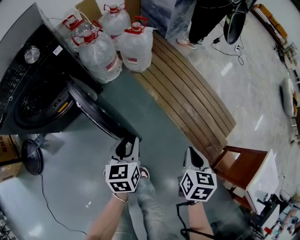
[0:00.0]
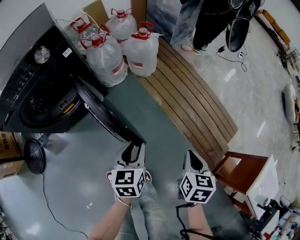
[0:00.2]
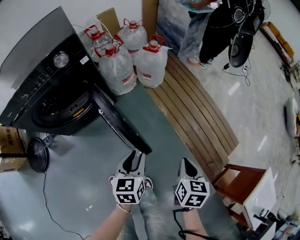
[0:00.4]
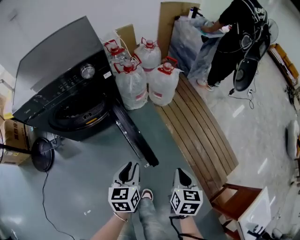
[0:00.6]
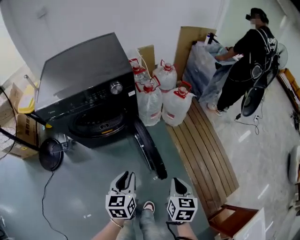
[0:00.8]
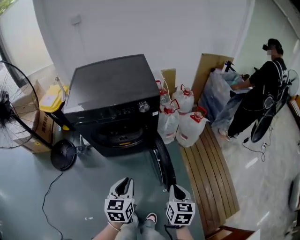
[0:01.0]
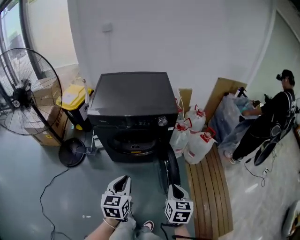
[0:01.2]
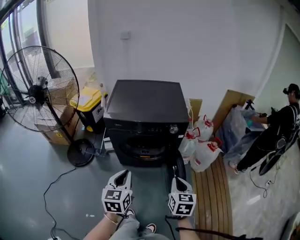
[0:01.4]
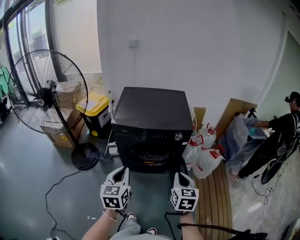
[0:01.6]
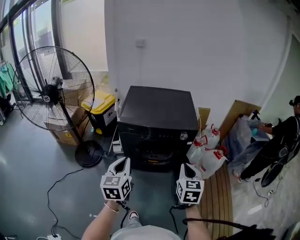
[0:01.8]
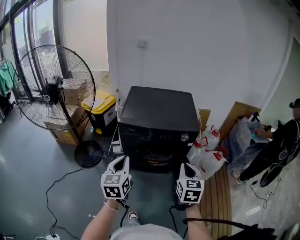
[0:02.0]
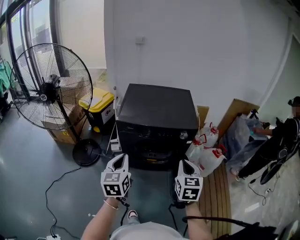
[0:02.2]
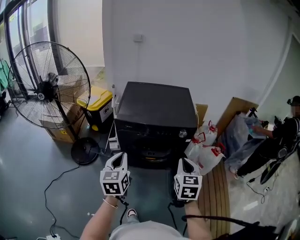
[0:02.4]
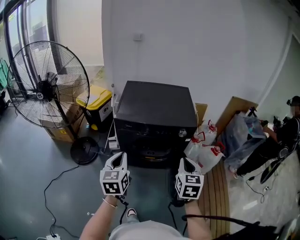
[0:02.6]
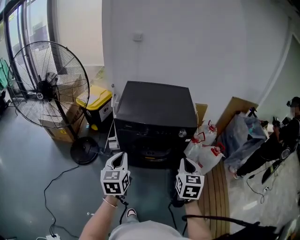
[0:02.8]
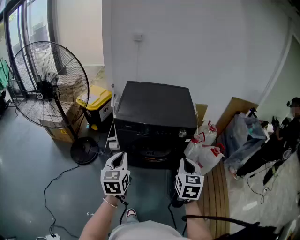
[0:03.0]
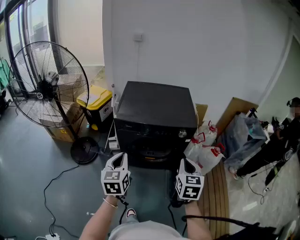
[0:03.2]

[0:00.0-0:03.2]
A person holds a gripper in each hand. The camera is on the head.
0:00.0 to 0:01.6: The right gripper ends up some 50 cm from where it was, and turns by approximately 60 degrees. Meanwhile the left gripper heads upward, covering roughly 40 cm, swivels some 50 degrees, and closes its fingers.
0:01.6 to 0:03.2: The left gripper changes place by approximately 5 cm. Meanwhile the right gripper moves approximately 5 cm.

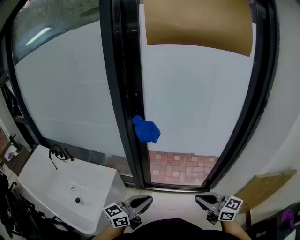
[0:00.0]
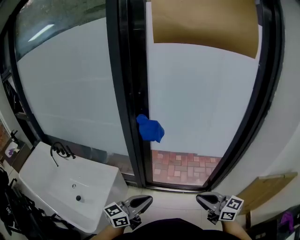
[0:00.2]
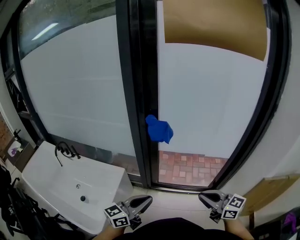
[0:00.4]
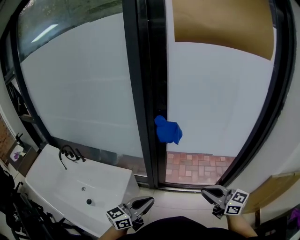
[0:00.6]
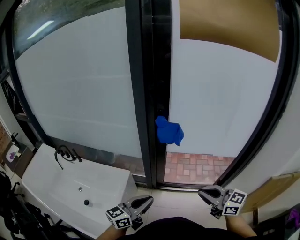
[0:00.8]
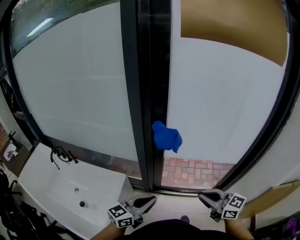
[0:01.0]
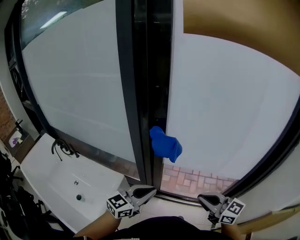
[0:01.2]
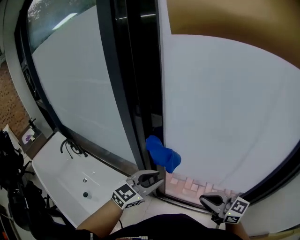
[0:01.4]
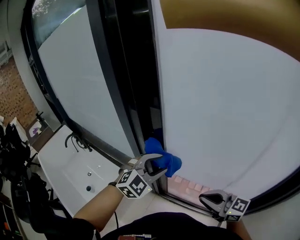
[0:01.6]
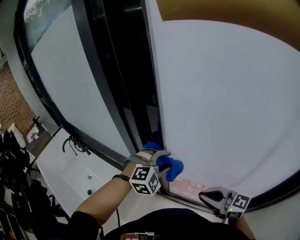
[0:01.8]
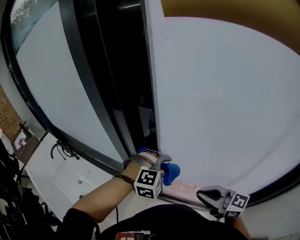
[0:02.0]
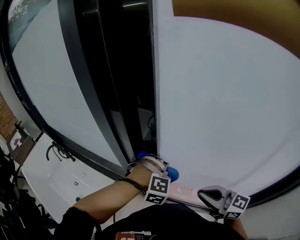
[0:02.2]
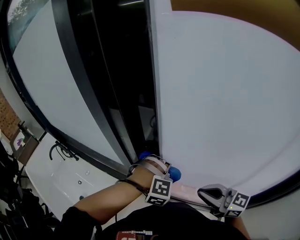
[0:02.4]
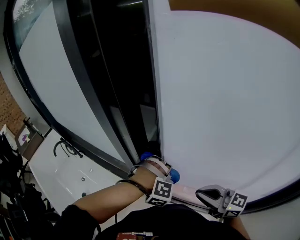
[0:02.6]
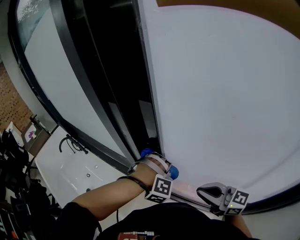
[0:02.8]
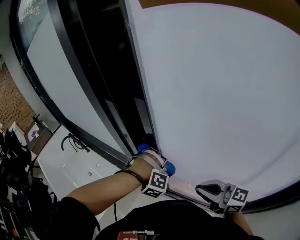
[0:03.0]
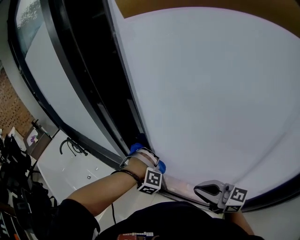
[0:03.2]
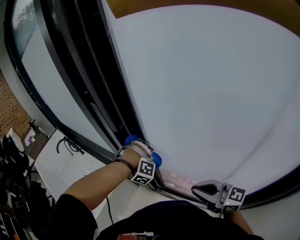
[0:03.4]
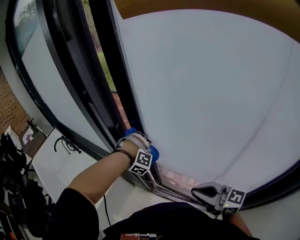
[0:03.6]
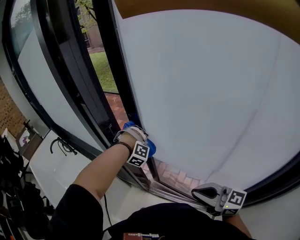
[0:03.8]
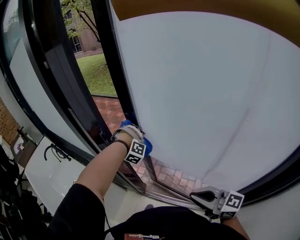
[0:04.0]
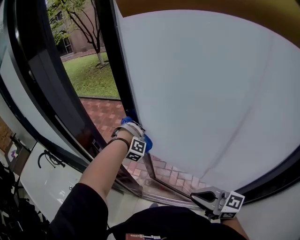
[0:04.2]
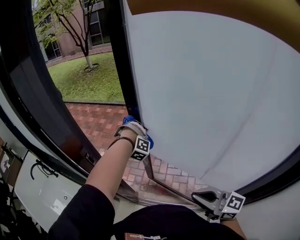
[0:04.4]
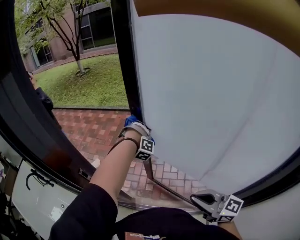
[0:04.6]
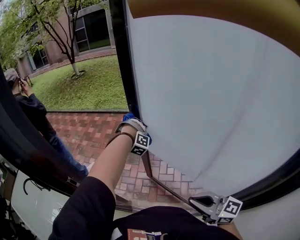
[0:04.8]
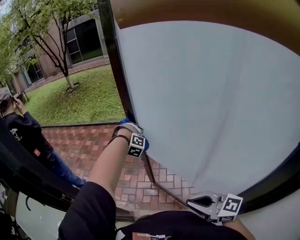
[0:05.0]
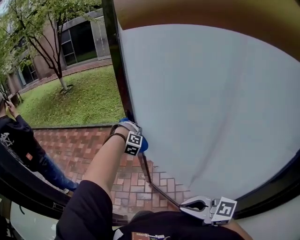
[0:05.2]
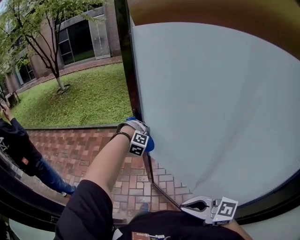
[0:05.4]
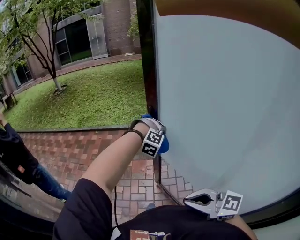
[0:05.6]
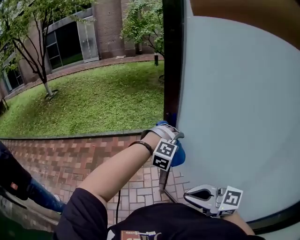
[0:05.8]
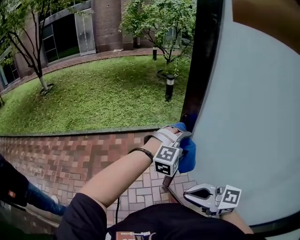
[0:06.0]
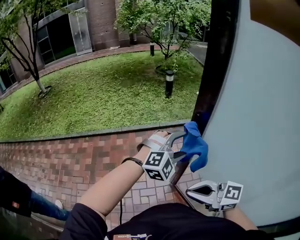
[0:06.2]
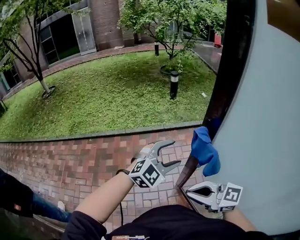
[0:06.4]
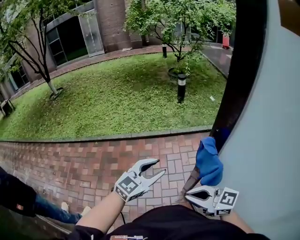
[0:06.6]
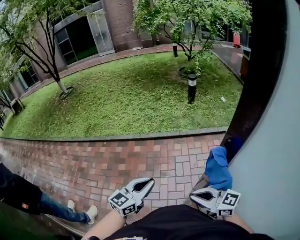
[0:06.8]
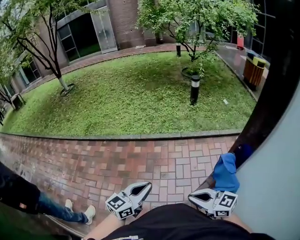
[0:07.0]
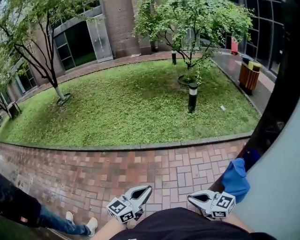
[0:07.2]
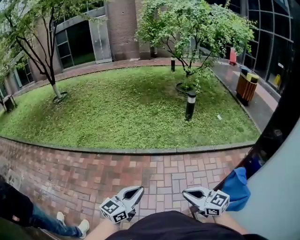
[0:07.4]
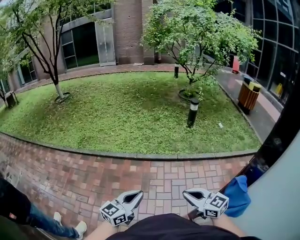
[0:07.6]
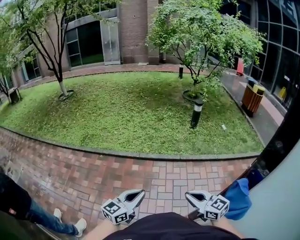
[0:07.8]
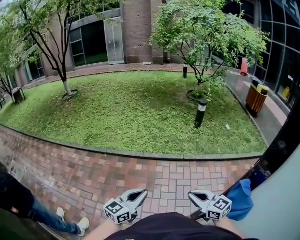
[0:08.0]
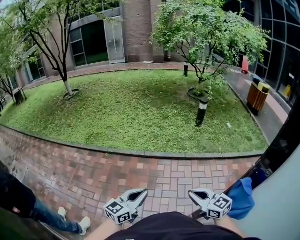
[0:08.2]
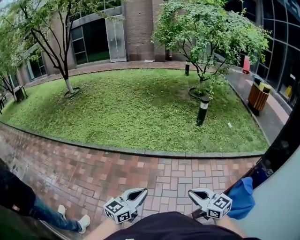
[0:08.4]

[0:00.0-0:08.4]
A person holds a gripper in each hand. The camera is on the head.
0:00.0 to 0:01.4: Both grippers move forward, roughly 30 cm. The left gripper swivels roughly 40 degrees.
0:01.4 to 0:02.8: The left gripper ends up some 20 cm from where it was, and angles its fingers downward, by about 40 degrees, while the right gripper moves roughly 15 cm.
0:02.8 to 0:04.2: The right gripper heads backward and to the right, covering some 15 cm, while the left gripper heads to the right and forward, covering roughly 20 cm.
0:04.2 to 0:05.6: The left gripper changes place by roughly 40 cm, and turns by some 30 degrees; the right gripper ends up about 25 cm from where it was.
0:05.6 to 0:07.0: The left gripper moves forward and to the left, approximately 20 cm, rolls counterclockwise, seen from behind, by roughly 100 degrees, and opens and closes again. Meanwhile the right gripper is displaced forward by approximately 40 cm.
0:07.0 to 0:08.4: The right gripper heads forward and to the left, covering about 15 cm. The left gripper is displaced to the left and forward by about 15 cm.

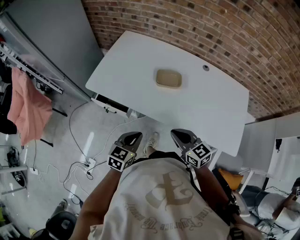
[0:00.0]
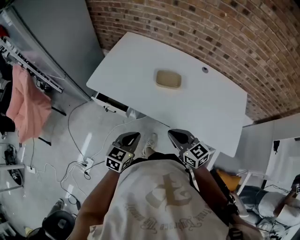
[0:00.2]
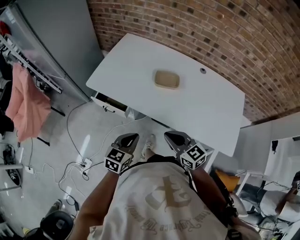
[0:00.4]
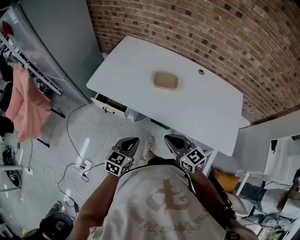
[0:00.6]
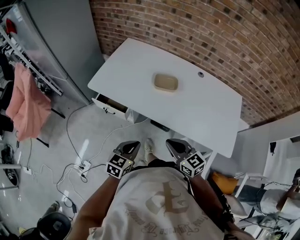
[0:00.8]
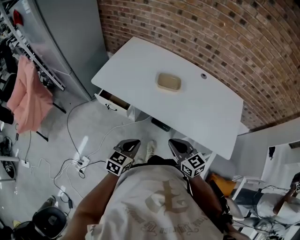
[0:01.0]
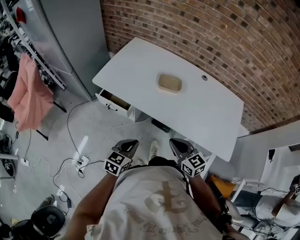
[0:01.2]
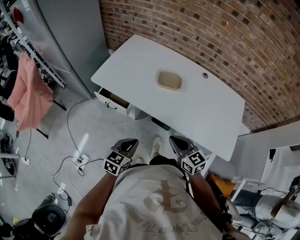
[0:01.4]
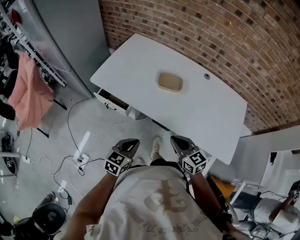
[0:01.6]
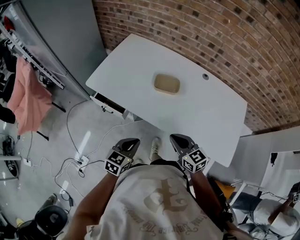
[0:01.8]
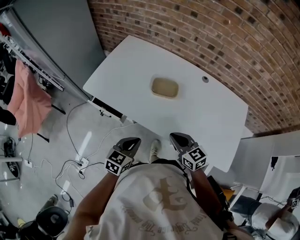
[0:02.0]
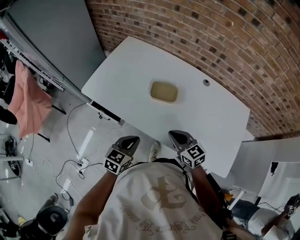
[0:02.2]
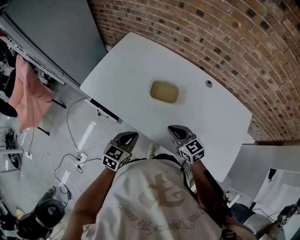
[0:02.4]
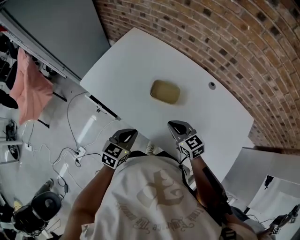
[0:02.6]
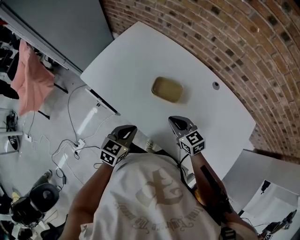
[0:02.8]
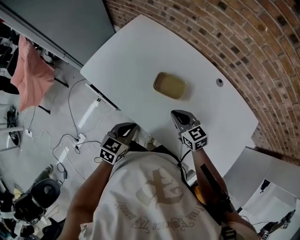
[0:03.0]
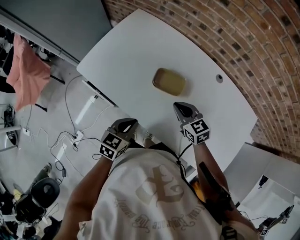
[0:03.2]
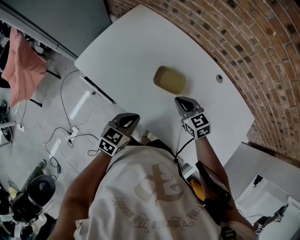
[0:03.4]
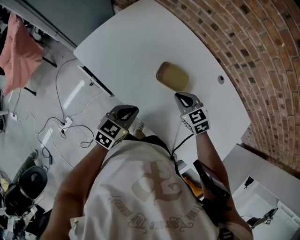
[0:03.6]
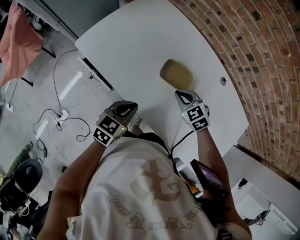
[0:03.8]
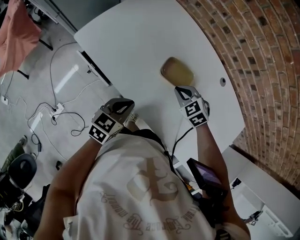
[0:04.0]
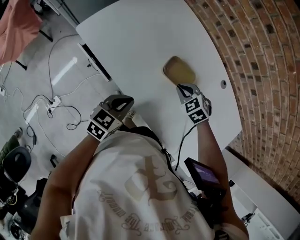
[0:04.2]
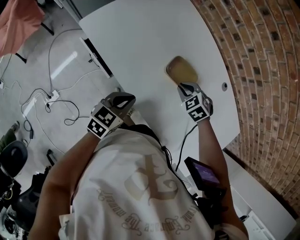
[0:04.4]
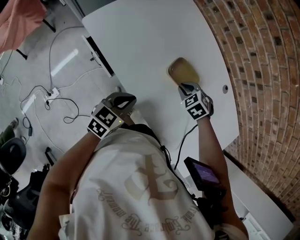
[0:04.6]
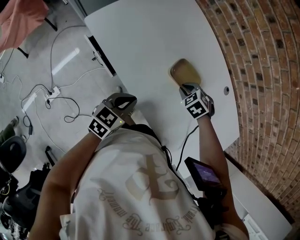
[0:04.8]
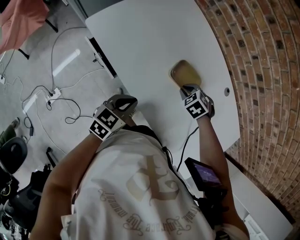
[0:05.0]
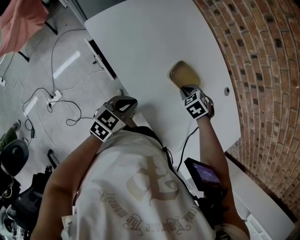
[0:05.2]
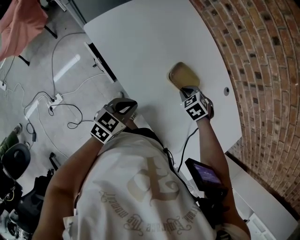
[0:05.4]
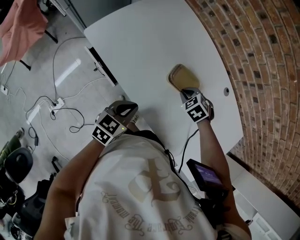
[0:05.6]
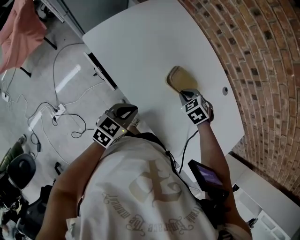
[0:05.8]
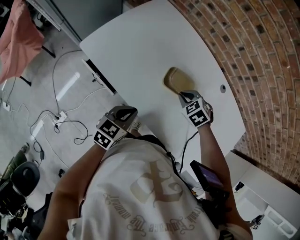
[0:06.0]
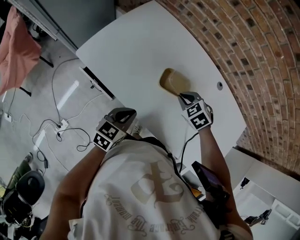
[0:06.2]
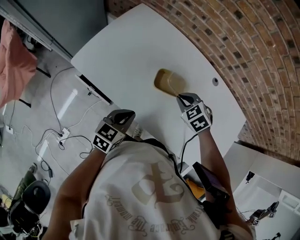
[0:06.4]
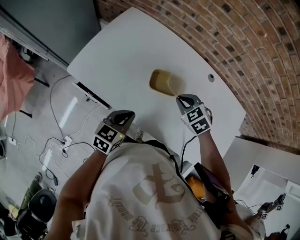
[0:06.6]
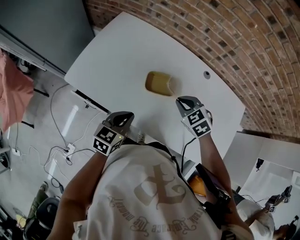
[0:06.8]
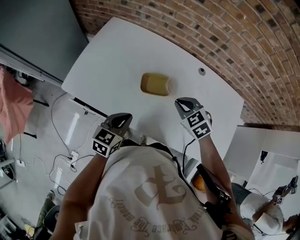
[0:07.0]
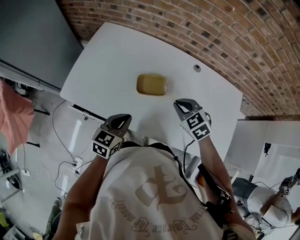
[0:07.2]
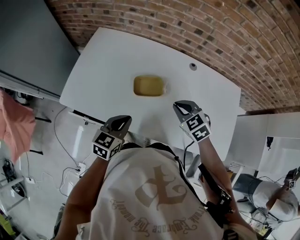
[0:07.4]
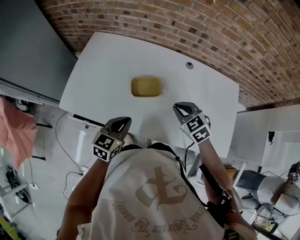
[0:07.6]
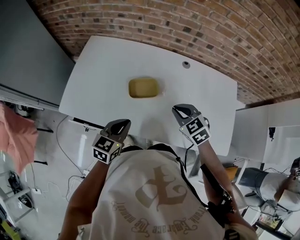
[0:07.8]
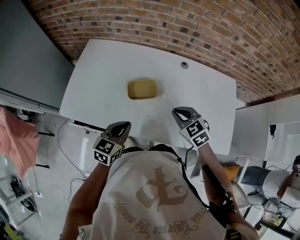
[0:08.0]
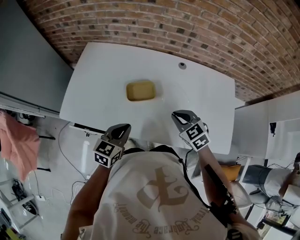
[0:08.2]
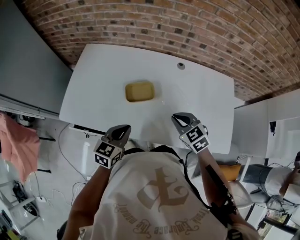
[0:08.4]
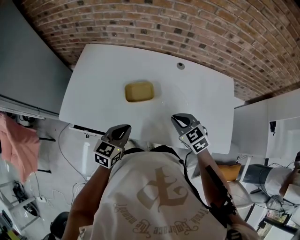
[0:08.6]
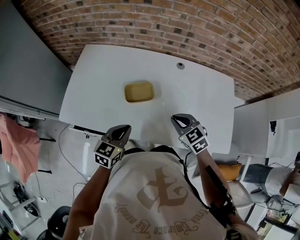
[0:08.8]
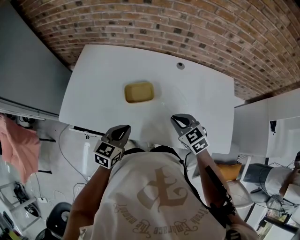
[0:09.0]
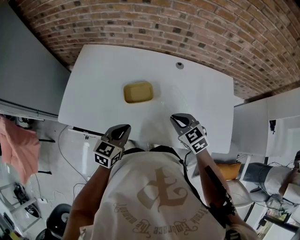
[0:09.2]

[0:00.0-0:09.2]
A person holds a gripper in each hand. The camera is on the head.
0:00.0 to 0:01.6: The left gripper shifts roughly 5 cm backward.
0:01.6 to 0:03.0: The left gripper moves forward and to the right, some 20 cm. The right gripper shifts roughly 25 cm forward.
0:03.0 to 0:04.6: The left gripper changes place by roughly 5 cm; the right gripper goes about 10 cm downward, and angles its fingers downward, by approximately 40 degrees.
0:04.6 to 0:06.2: The right gripper heads upward, covering roughly 5 cm.
0:06.2 to 0:07.6: The right gripper is displaced to the right, upward and backward by roughly 15 cm, and turns by about 30 degrees. Meanwhile the left gripper shifts by about 5 cm.
0:07.6 to 0:09.2: The right gripper shifts by roughly 5 cm.

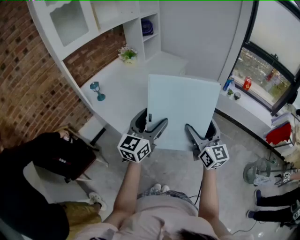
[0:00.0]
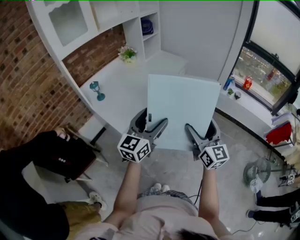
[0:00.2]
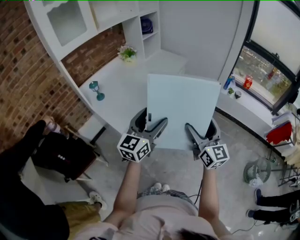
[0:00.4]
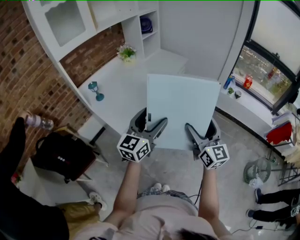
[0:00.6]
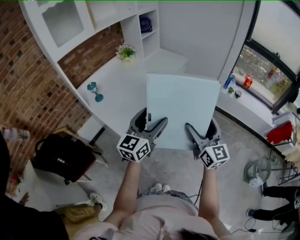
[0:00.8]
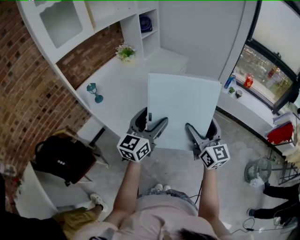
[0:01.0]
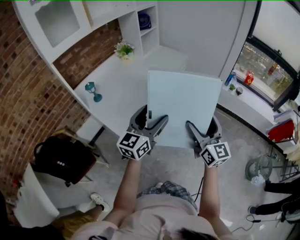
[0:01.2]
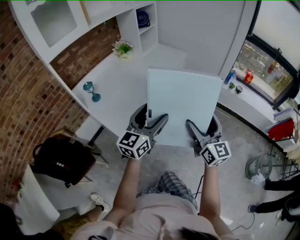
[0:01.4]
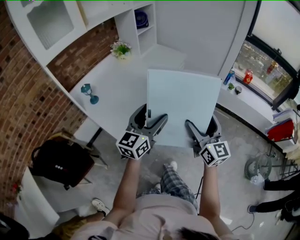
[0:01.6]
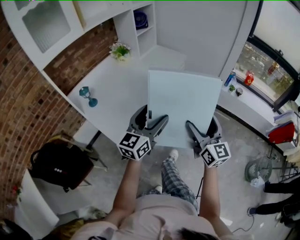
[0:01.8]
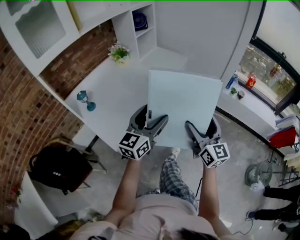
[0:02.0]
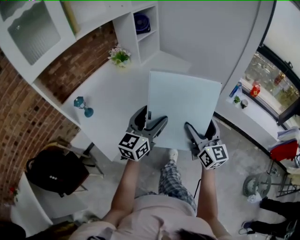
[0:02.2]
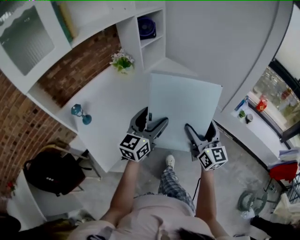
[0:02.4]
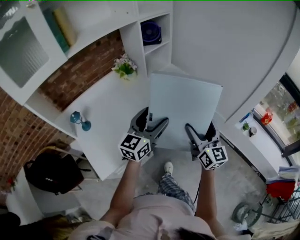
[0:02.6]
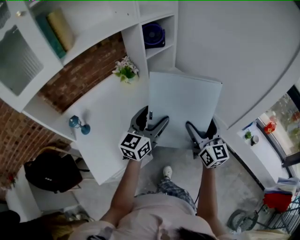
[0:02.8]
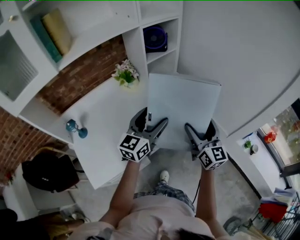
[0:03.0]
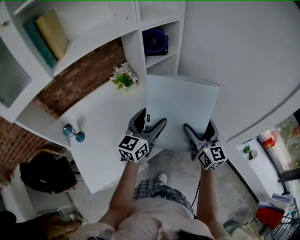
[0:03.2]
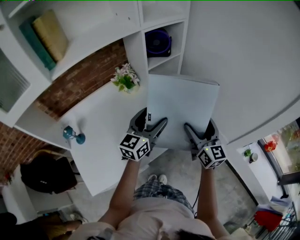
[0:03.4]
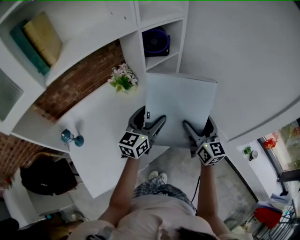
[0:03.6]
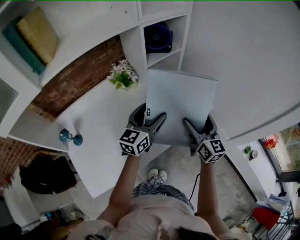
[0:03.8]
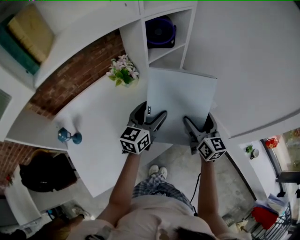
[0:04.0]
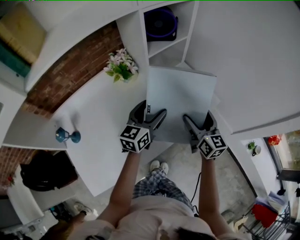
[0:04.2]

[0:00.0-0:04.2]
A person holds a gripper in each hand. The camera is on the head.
0:00.0 to 0:01.4: The grippers both shift forward by some 10 cm.
0:01.4 to 0:02.8: Both grippers are carried forward, approximately 50 cm.
0:02.8 to 0:04.2: The two grippers go approximately 25 cm forward and downward.
